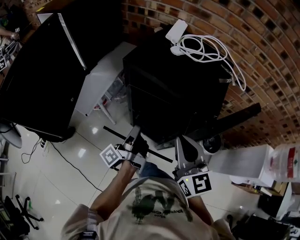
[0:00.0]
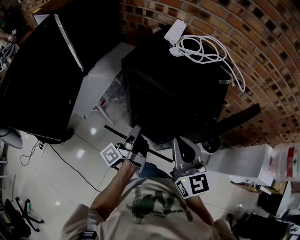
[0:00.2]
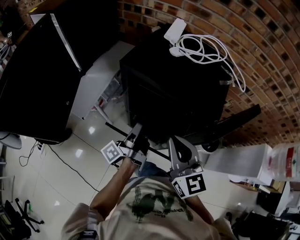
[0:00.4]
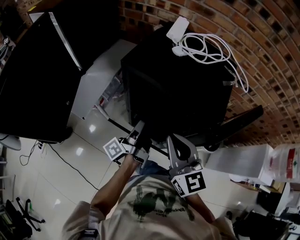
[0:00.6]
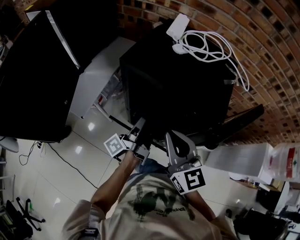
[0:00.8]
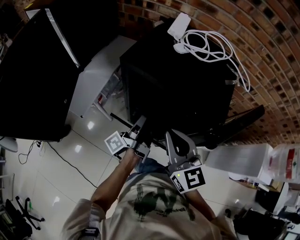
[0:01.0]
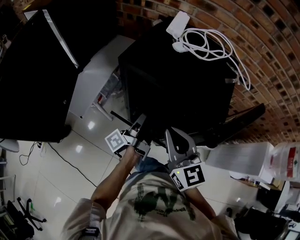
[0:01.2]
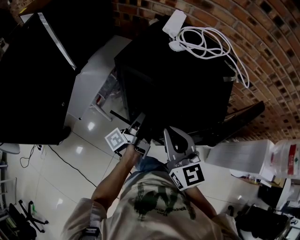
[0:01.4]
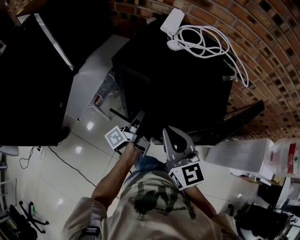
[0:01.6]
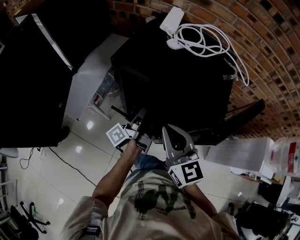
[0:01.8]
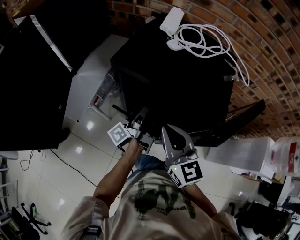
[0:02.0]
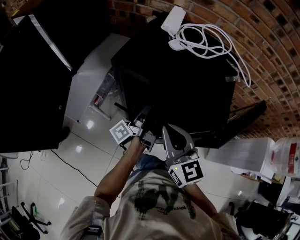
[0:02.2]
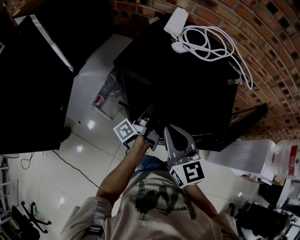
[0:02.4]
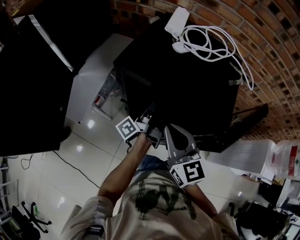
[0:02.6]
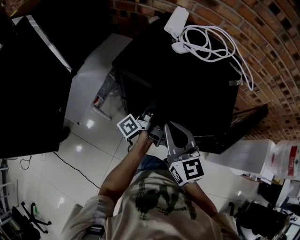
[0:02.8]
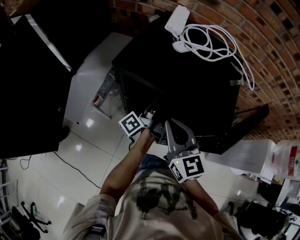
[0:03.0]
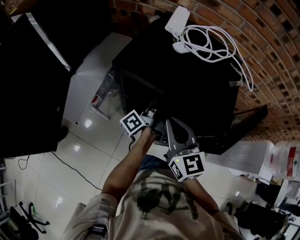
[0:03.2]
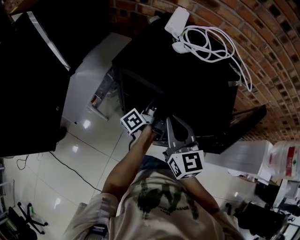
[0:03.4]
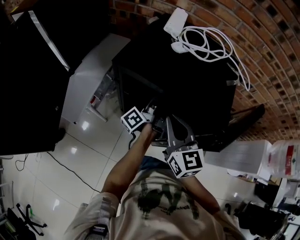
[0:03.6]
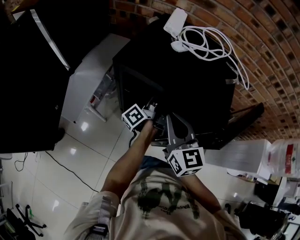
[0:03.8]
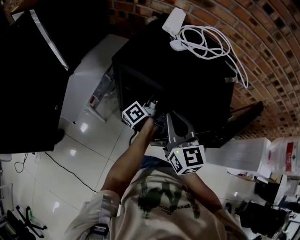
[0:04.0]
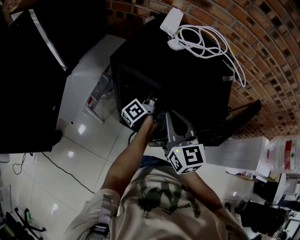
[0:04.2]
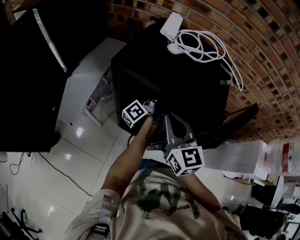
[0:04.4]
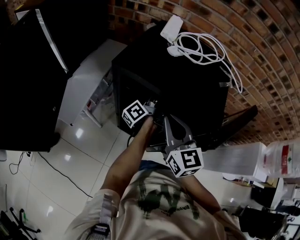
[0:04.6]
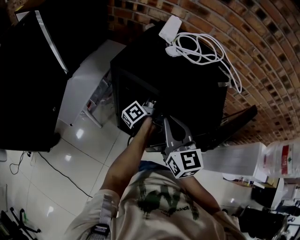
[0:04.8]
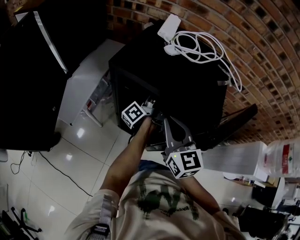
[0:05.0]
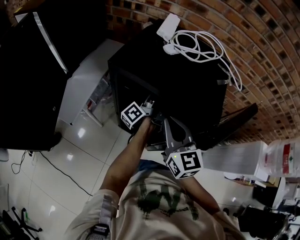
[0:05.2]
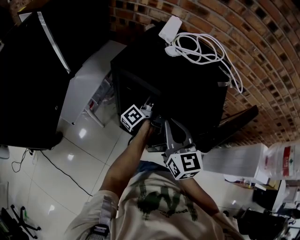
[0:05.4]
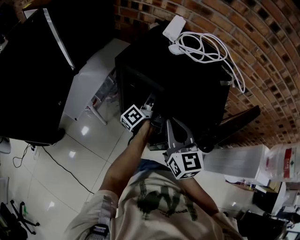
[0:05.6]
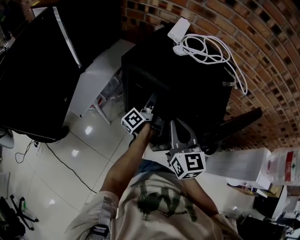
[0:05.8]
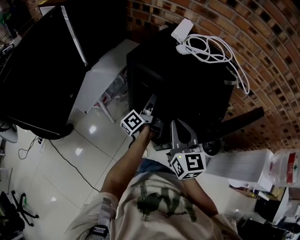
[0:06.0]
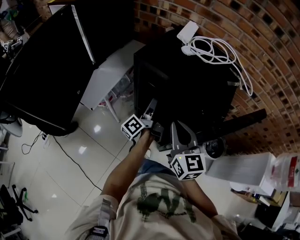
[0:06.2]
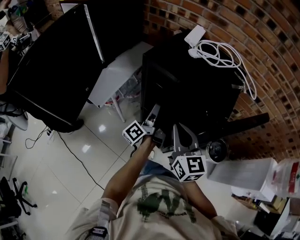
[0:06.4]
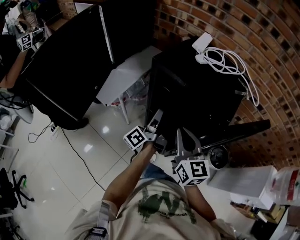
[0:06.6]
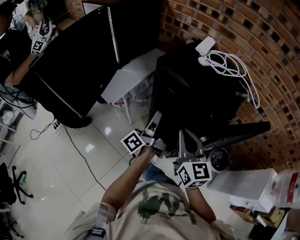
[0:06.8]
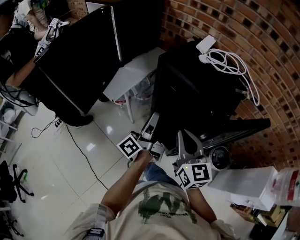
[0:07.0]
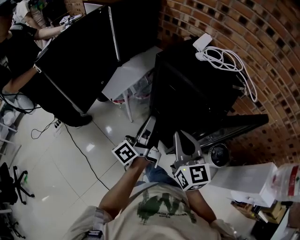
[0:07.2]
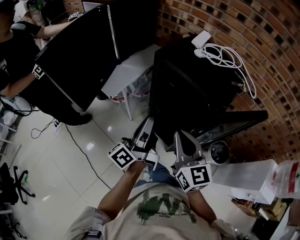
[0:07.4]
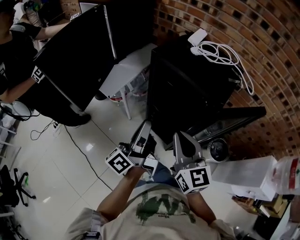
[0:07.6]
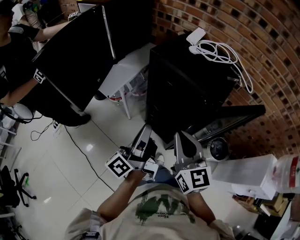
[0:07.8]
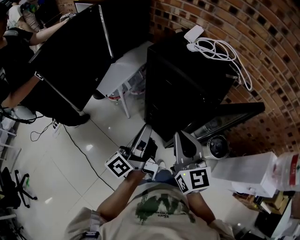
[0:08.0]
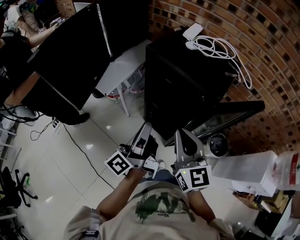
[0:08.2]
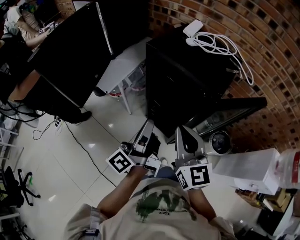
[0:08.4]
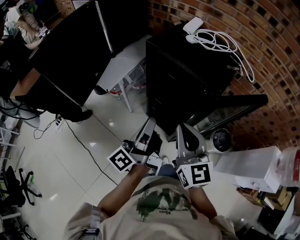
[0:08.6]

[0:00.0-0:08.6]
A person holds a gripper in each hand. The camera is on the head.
0:00.0 to 0:01.4: The right gripper ends up about 5 cm from where it was.
0:01.4 to 0:02.8: The right gripper shifts by about 5 cm.
0:05.8 to 0:07.2: The right gripper moves about 15 cm.
0:07.2 to 0:08.6: The right gripper changes place by some 5 cm.

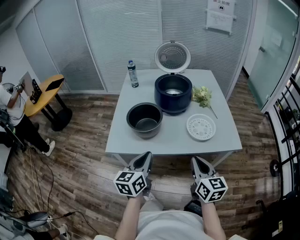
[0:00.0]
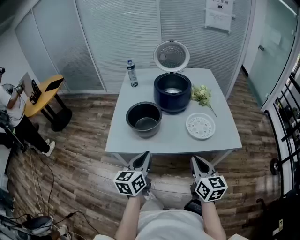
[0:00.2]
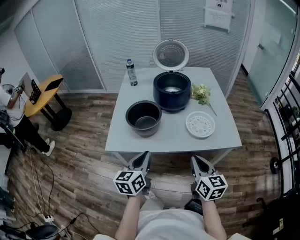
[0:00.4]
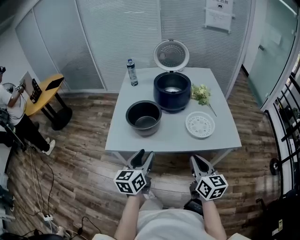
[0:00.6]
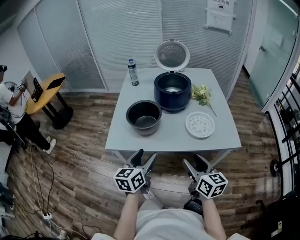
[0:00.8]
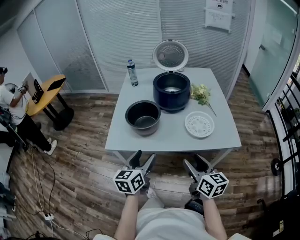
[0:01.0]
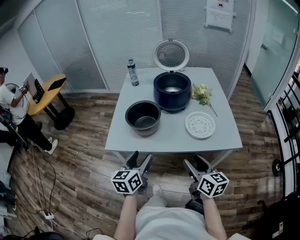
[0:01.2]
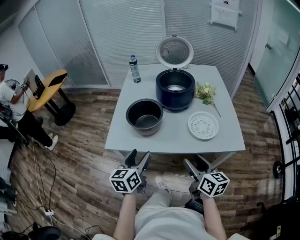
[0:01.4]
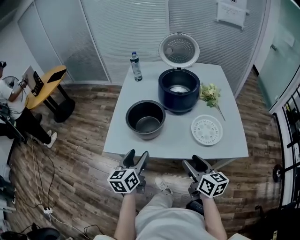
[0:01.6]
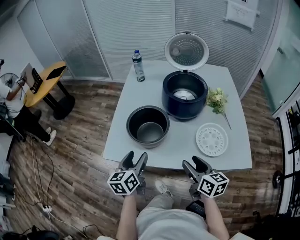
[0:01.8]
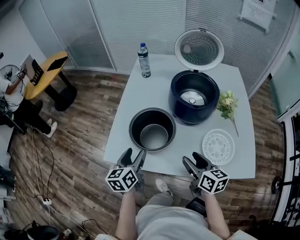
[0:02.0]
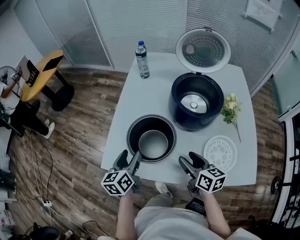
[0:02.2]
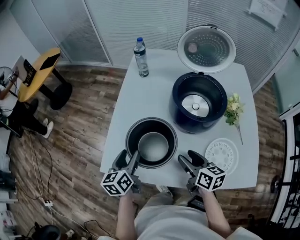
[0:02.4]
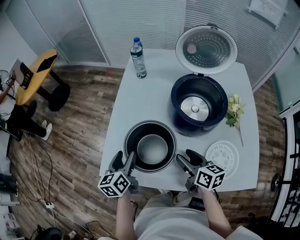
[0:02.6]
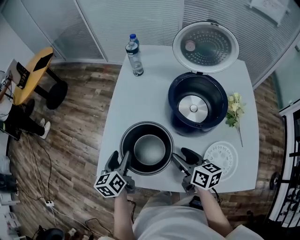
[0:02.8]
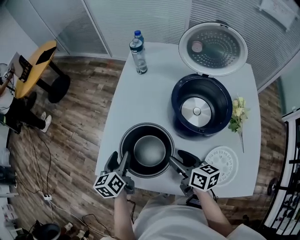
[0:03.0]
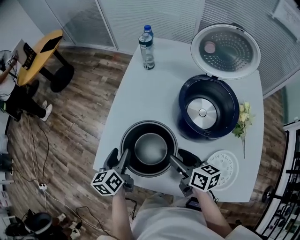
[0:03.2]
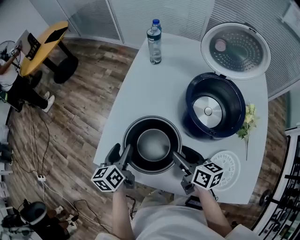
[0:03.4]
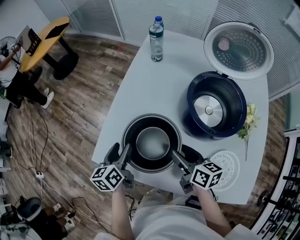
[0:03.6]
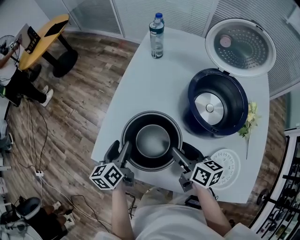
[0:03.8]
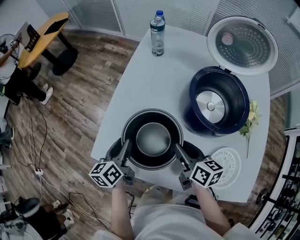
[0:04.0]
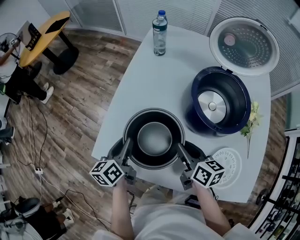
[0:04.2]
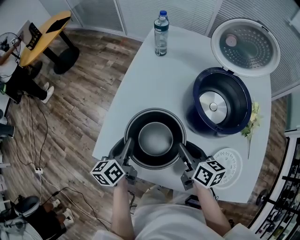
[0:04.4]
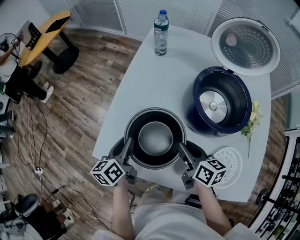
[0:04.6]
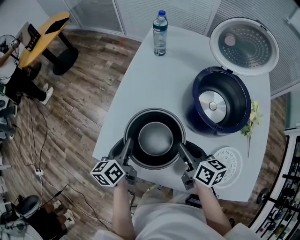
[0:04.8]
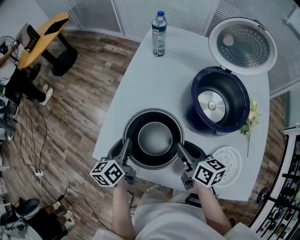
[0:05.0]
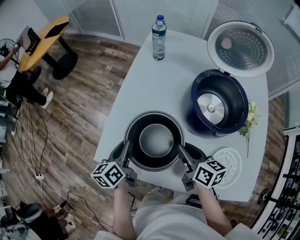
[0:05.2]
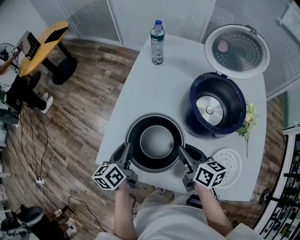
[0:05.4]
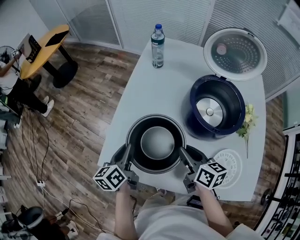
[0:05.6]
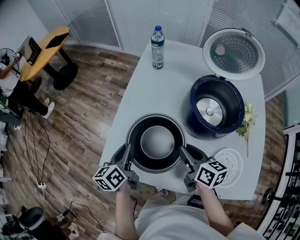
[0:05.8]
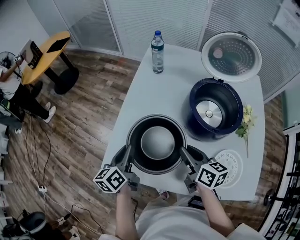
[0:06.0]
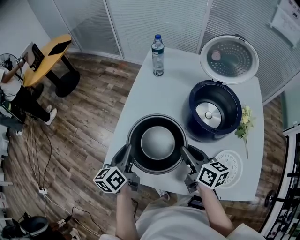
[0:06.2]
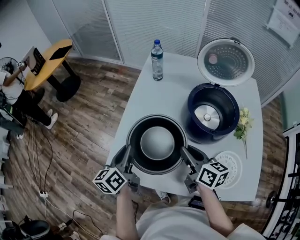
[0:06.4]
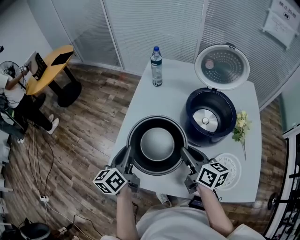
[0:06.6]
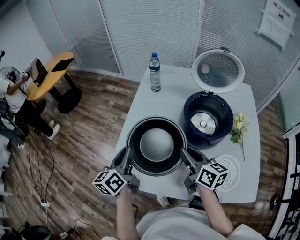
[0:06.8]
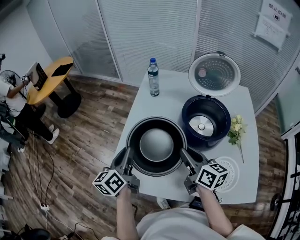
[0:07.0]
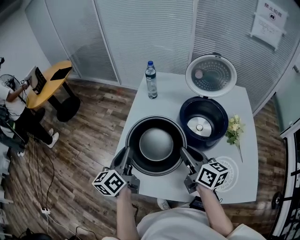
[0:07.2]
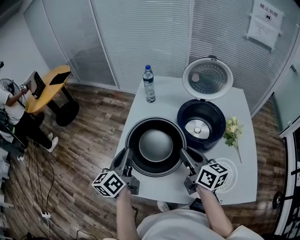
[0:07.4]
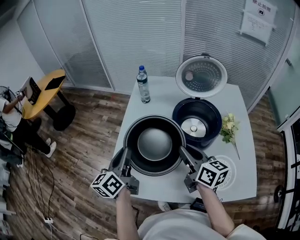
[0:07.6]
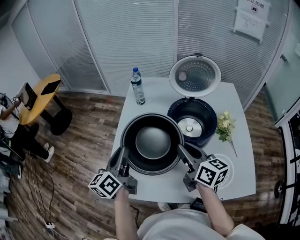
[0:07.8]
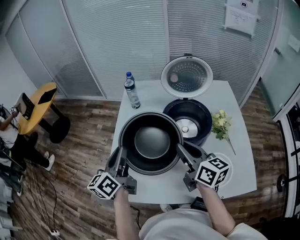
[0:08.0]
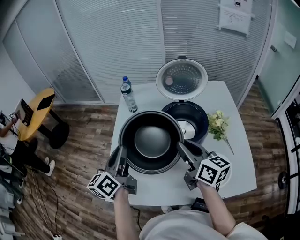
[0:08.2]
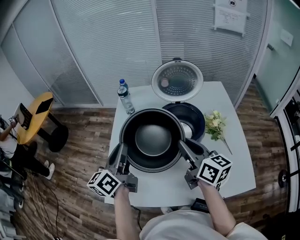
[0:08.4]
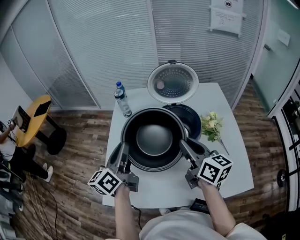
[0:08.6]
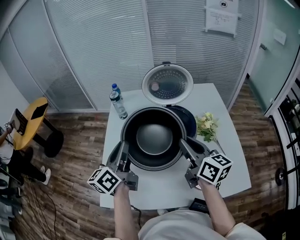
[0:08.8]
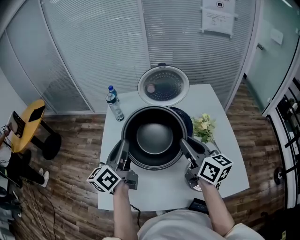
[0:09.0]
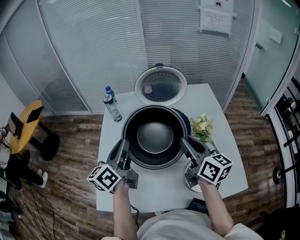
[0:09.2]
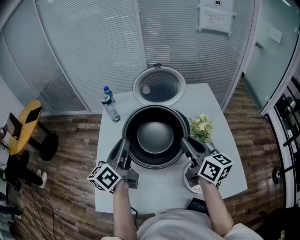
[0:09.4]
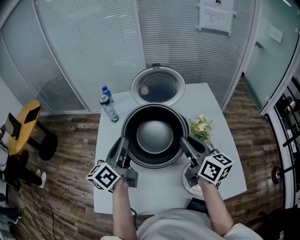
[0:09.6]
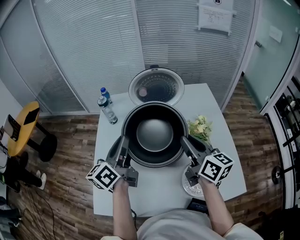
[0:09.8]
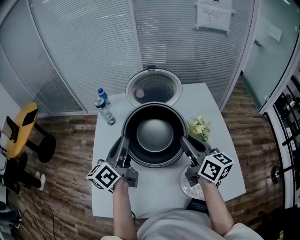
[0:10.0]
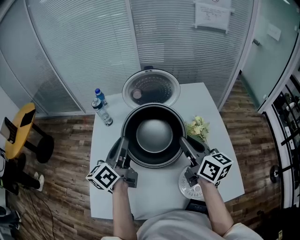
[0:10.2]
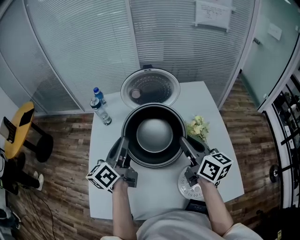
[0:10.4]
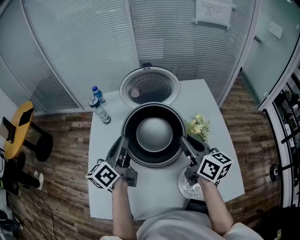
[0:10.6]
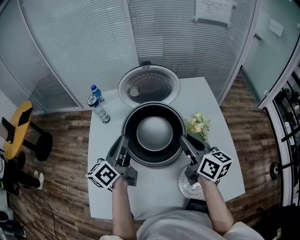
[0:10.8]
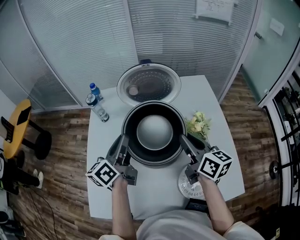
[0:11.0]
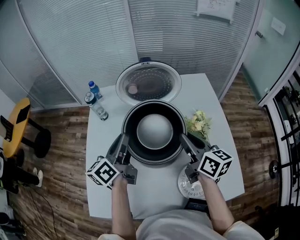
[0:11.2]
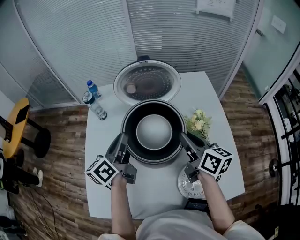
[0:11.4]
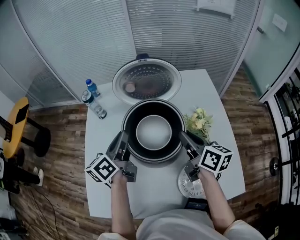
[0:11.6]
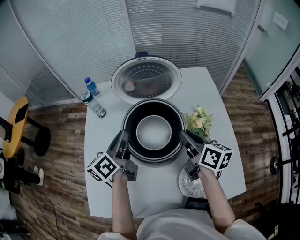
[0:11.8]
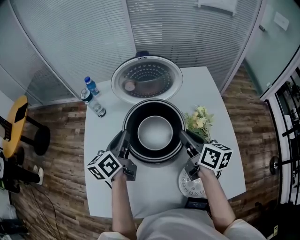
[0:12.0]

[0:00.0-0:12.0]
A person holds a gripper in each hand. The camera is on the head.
0:00.0 to 0:01.6: Both grippers travel together forward and downward, roughly 10 cm. The right gripper opens its fingers; the left gripper opens up.
0:01.6 to 0:03.0: Both grippers travel together forward, approximately 25 cm. The right gripper rotates approximately 20 degrees. Meanwhile the left gripper rotates approximately 20 degrees.
0:03.0 to 0:04.4: The left gripper closes. Meanwhile the right gripper closes its fingers.
0:04.4 to 0:06.0: The two grippers go approximately 5 cm upward.
0:06.0 to 0:07.6: The two grippers go about 15 cm upward.
0:07.6 to 0:09.0: The right gripper heads to the right and upward, covering approximately 15 cm, while the left gripper shifts approximately 15 cm to the right, upward and forward.
0:09.0 to 0:10.4: The two grippers go about 10 cm forward and to the right.
0:10.4 to 0:12.0: Both grippers travel together downward and forward, about 10 cm.

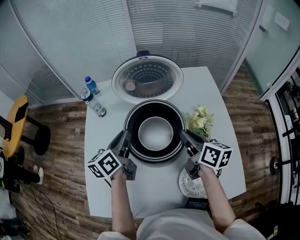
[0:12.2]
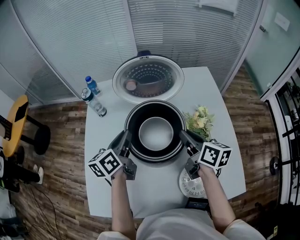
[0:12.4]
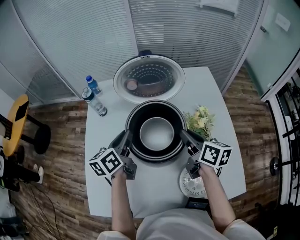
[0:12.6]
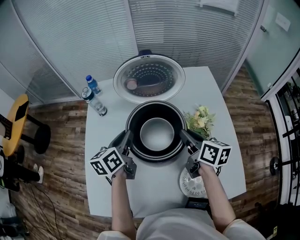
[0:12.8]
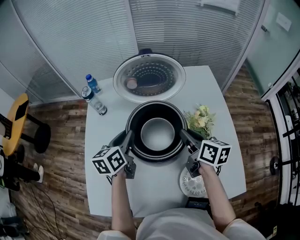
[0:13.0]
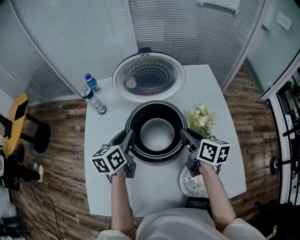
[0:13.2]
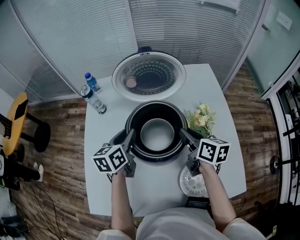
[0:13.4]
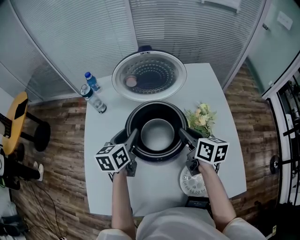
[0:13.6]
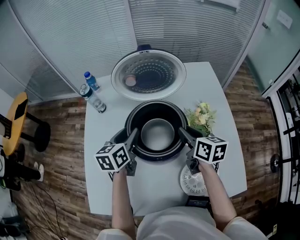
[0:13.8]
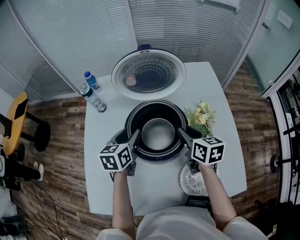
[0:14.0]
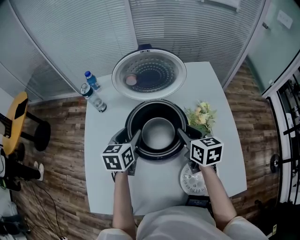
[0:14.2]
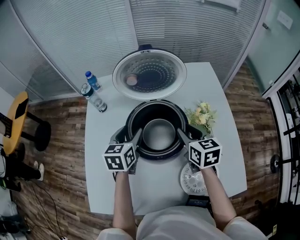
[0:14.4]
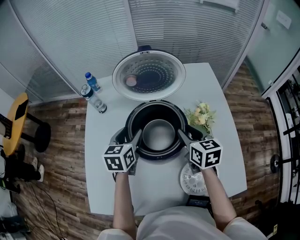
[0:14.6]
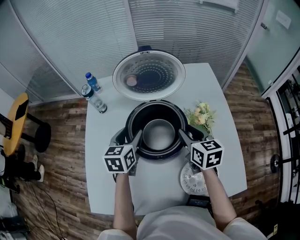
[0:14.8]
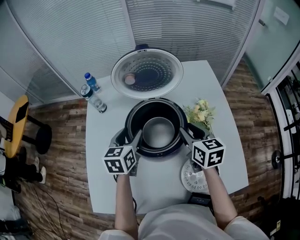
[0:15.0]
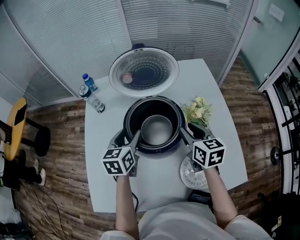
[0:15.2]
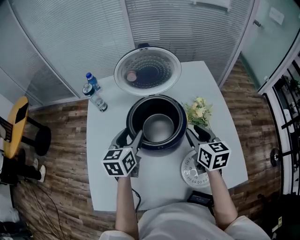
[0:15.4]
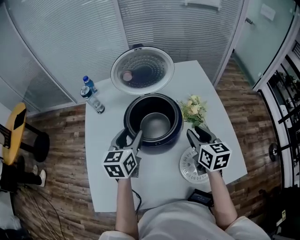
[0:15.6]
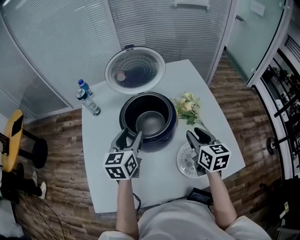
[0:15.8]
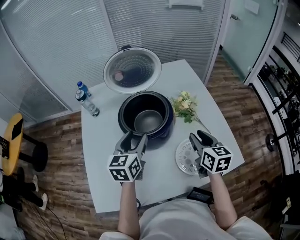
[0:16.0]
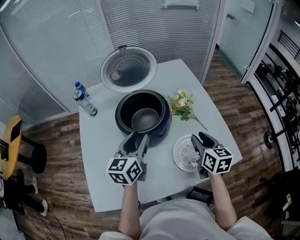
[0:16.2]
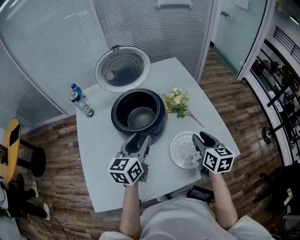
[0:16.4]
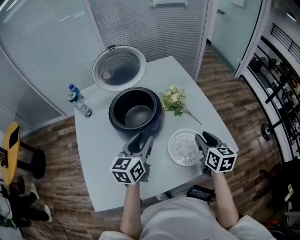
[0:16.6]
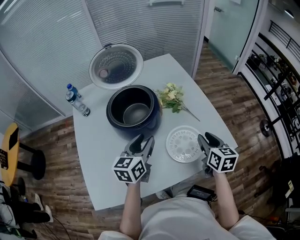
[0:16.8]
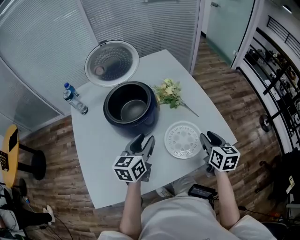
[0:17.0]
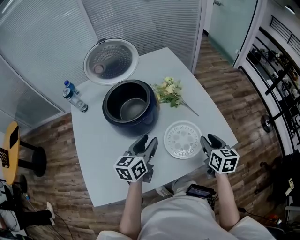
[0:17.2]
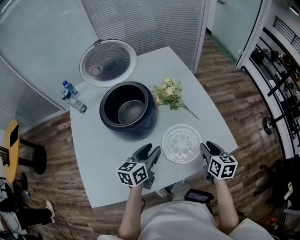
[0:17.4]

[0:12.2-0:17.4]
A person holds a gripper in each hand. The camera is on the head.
0:12.2 to 0:14.0: The left gripper is displaced downward by approximately 5 cm, rotates about 30 degrees, and opens up.
0:14.0 to 0:15.6: The right gripper moves backward, some 10 cm. The left gripper travels backward and upward by roughly 10 cm.
0:15.6 to 0:17.4: The grippers both shift to the right, backward and downward by approximately 25 cm. The left gripper turns by roughly 30 degrees.
